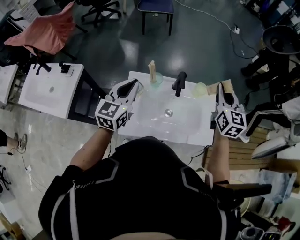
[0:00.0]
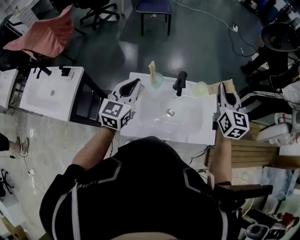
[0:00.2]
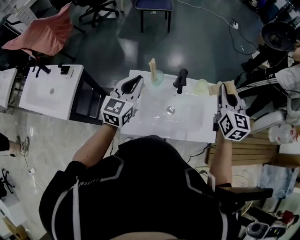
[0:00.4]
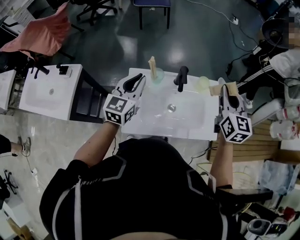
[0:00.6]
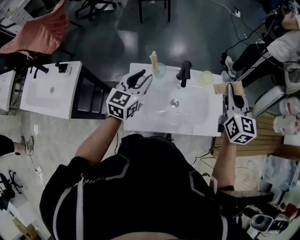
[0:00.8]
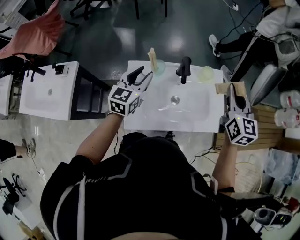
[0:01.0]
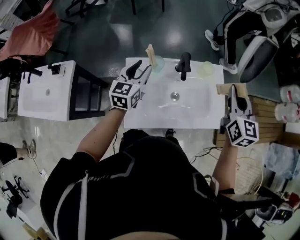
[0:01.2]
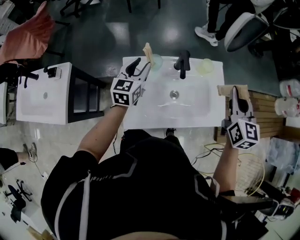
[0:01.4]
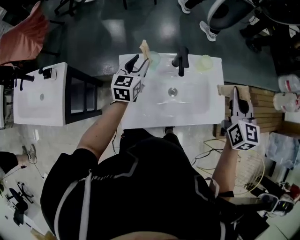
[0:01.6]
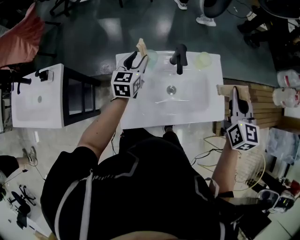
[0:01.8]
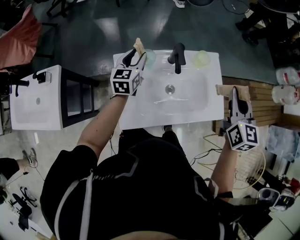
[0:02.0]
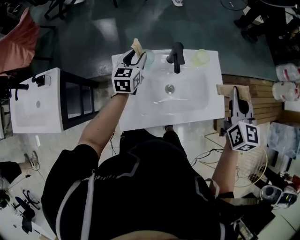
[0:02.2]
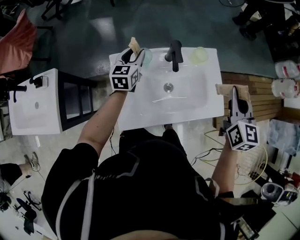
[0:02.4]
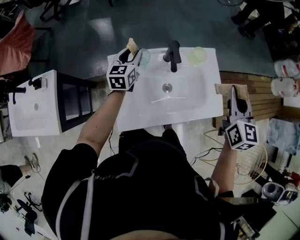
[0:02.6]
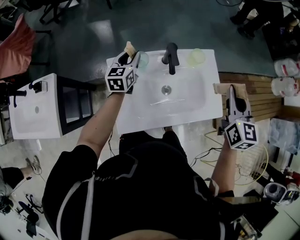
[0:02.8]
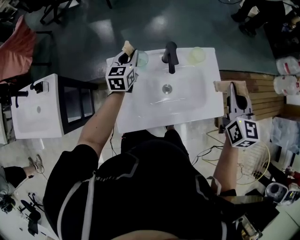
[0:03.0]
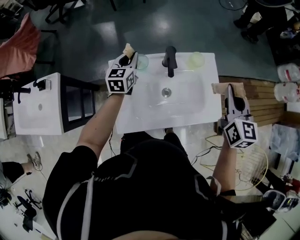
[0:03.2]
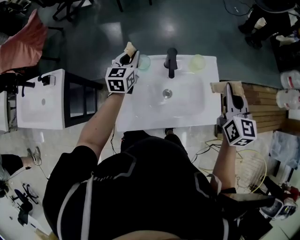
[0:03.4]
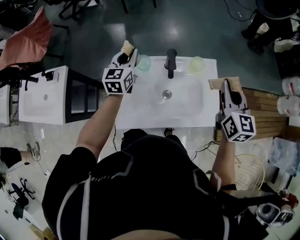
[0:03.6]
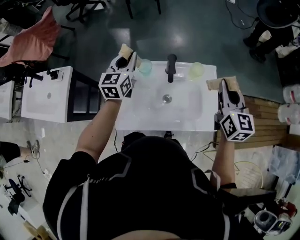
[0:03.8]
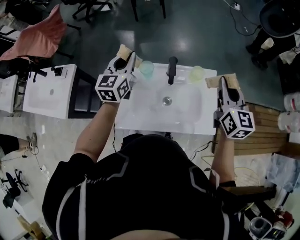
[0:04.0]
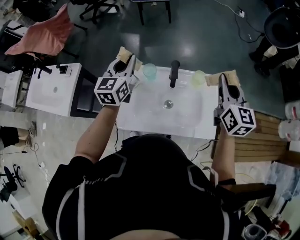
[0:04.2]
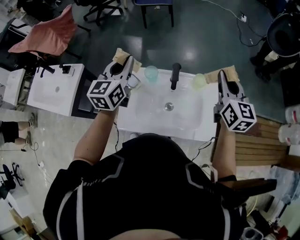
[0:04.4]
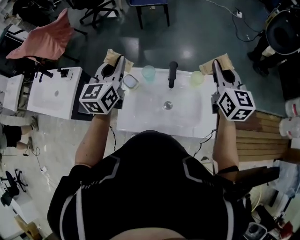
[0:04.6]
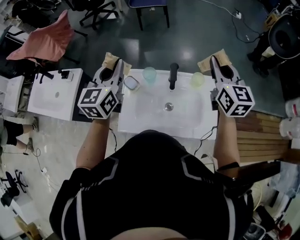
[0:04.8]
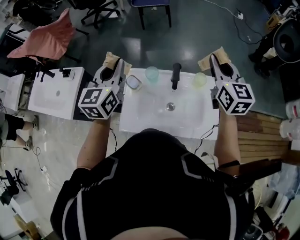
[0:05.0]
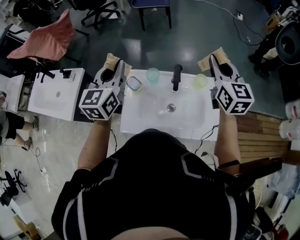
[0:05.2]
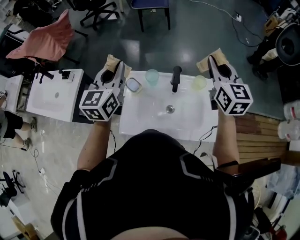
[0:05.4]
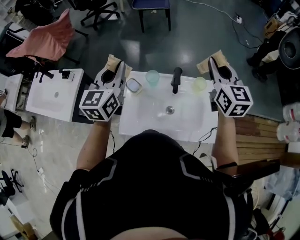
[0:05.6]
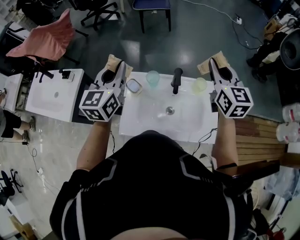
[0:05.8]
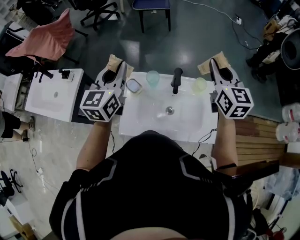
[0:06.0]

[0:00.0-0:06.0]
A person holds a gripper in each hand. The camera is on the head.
0:00.0 to 0:01.6: The right gripper is displaced backward by roughly 5 cm. The left gripper heads downward and forward, covering some 20 cm, and opens its fingers.
0:01.6 to 0:03.0: The left gripper moves forward, about 5 cm, and closes up.
0:03.0 to 0:04.4: The right gripper is displaced forward and upward by about 10 cm, and turns by some 20 degrees. Meanwhile the left gripper heads upward and backward, covering approximately 25 cm.
0:04.4 to 0:06.0: The left gripper ends up roughly 5 cm from where it was, while the right gripper is displaced to the left by approximately 5 cm.

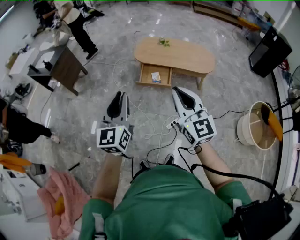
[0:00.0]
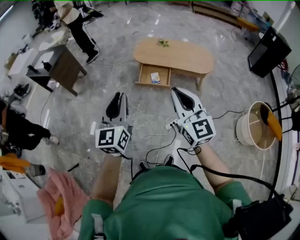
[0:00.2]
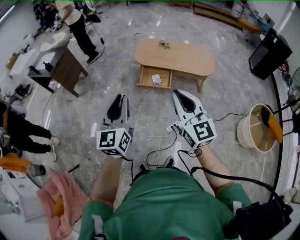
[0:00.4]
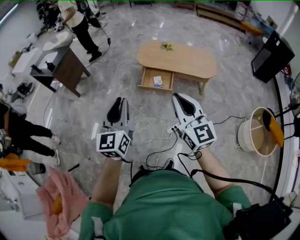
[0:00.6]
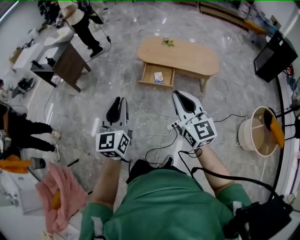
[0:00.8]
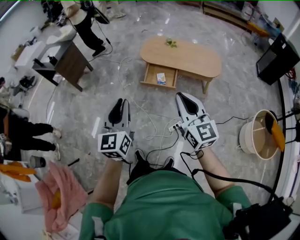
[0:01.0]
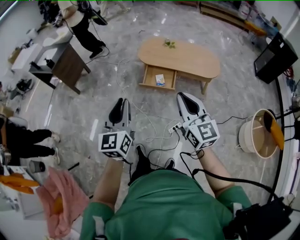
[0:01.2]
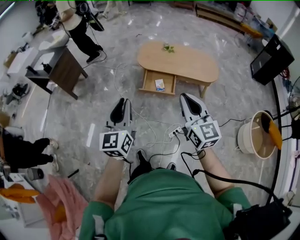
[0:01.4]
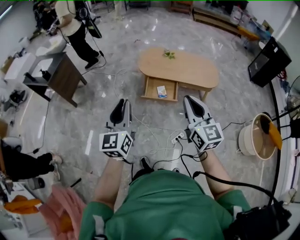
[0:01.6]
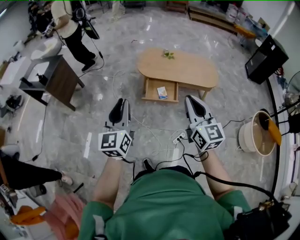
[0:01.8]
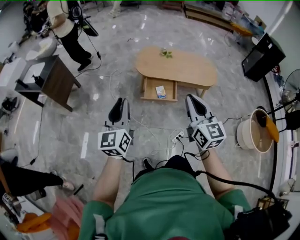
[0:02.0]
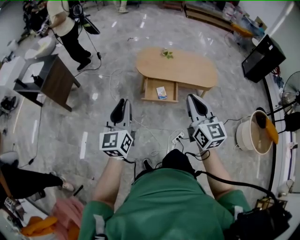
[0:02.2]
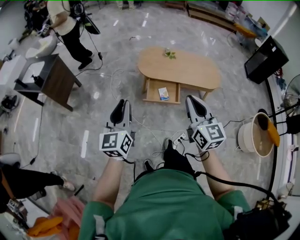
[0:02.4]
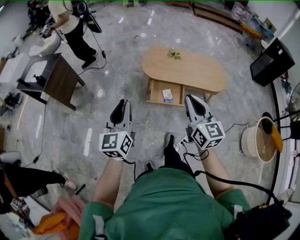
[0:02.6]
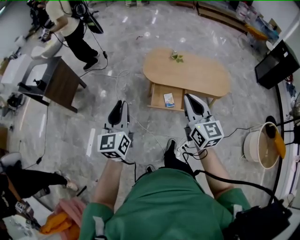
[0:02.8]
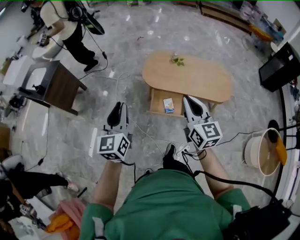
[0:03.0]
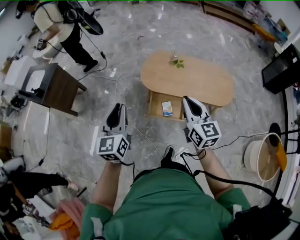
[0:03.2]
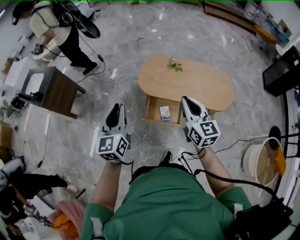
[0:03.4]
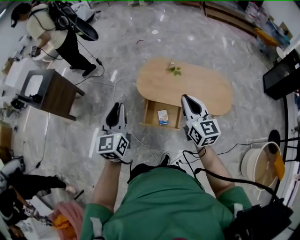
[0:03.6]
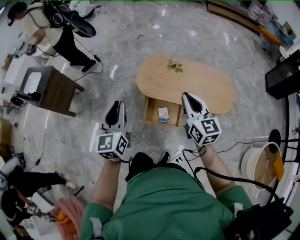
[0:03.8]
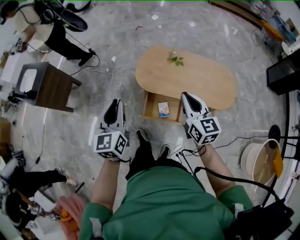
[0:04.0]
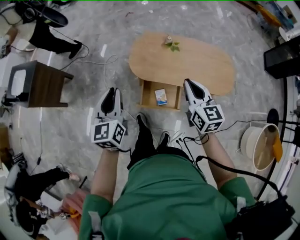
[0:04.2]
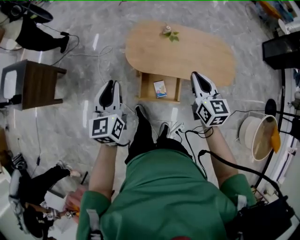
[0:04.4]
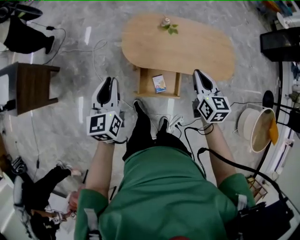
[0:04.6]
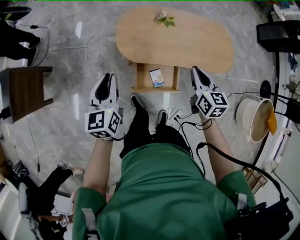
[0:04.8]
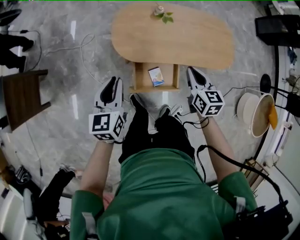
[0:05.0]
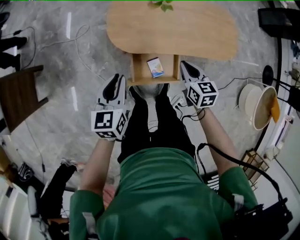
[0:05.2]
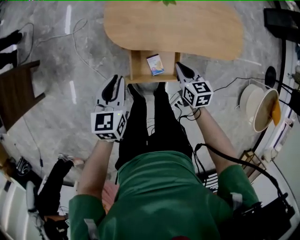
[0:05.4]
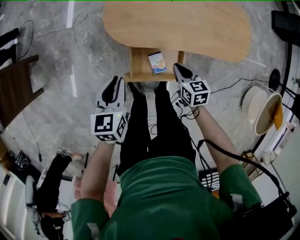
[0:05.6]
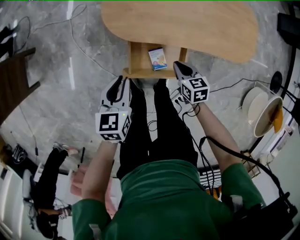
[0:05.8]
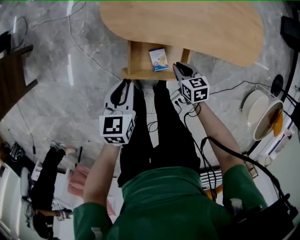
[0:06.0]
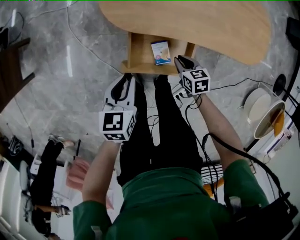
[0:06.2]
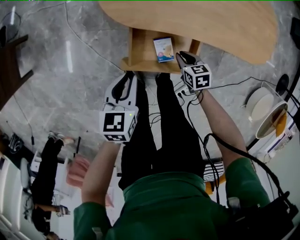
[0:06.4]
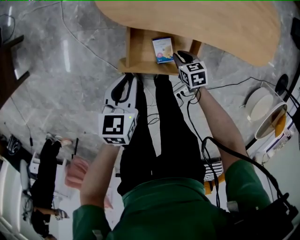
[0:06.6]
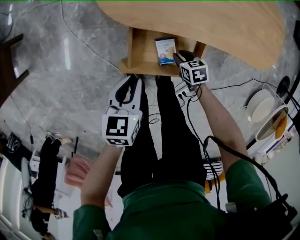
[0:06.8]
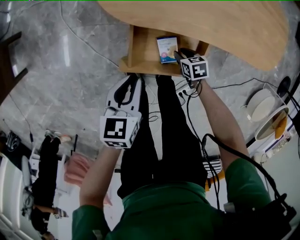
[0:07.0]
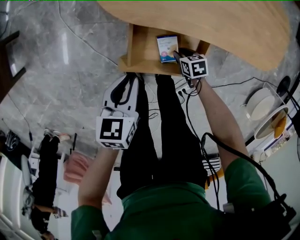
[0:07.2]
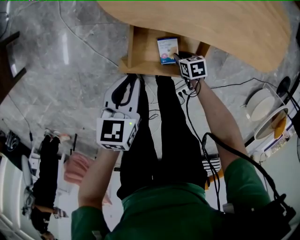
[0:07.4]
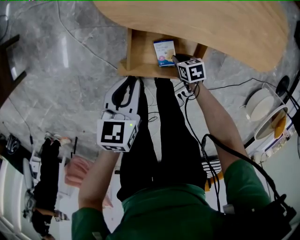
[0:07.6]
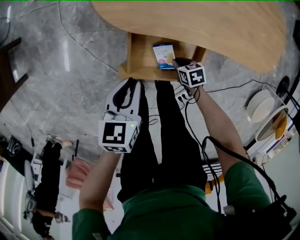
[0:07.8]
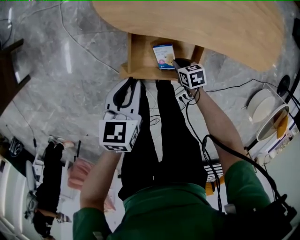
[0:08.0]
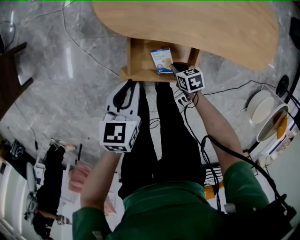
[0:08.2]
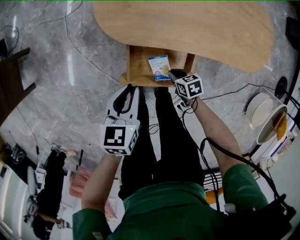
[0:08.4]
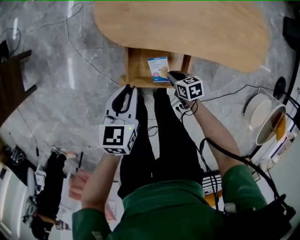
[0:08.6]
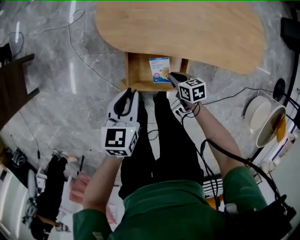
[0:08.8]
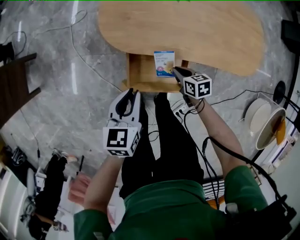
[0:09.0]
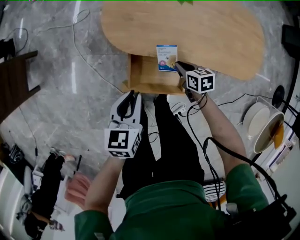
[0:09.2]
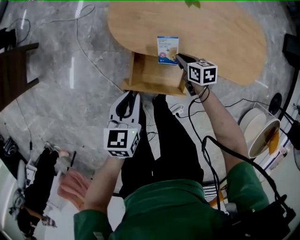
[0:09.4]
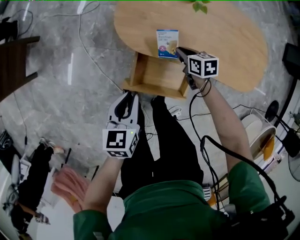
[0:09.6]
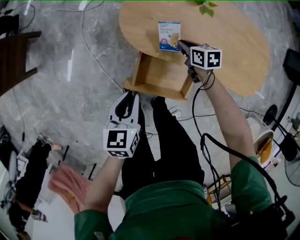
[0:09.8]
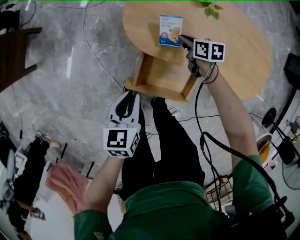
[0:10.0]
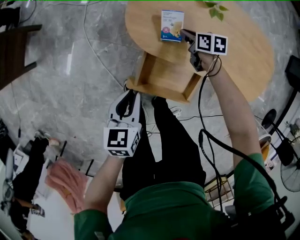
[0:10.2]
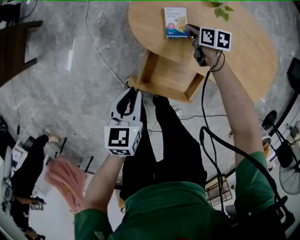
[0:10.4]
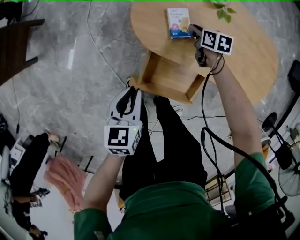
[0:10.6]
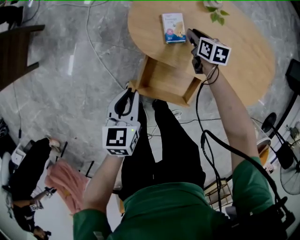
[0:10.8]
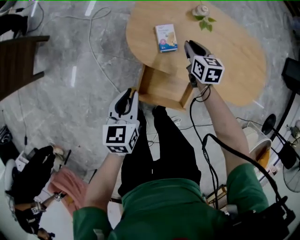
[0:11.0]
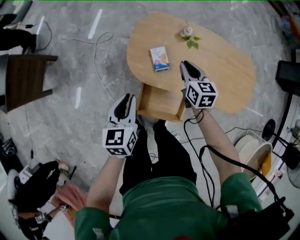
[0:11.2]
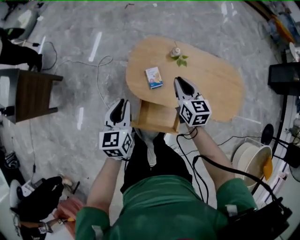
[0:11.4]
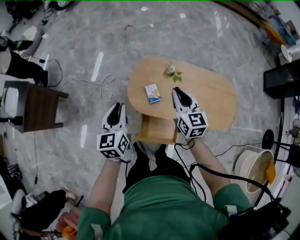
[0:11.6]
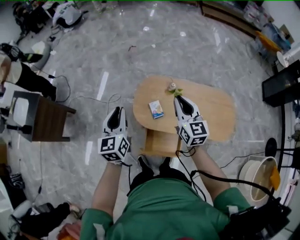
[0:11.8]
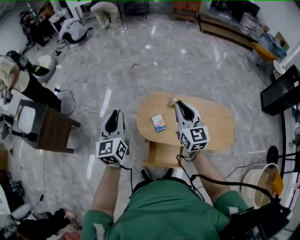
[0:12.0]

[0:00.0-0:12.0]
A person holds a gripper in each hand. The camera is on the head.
0:00.0 to 0:01.6: The two grippers go approximately 15 cm forward and to the left.
0:01.6 to 0:03.0: Both grippers move forward, about 30 cm.
0:03.0 to 0:04.4: The right gripper moves forward, to the right and downward, roughly 30 cm, while the left gripper is displaced forward and downward by approximately 30 cm.
0:04.4 to 0:06.0: The two grippers go some 40 cm downward. The left gripper rotates some 30 degrees. The right gripper angles its fingers downward, by about 30 degrees.
0:06.0 to 0:07.6: The right gripper shifts approximately 20 cm downward, and turns by approximately 20 degrees. The left gripper travels downward by roughly 10 cm.
0:07.6 to 0:09.0: The left gripper is displaced upward by approximately 10 cm, while the right gripper heads upward, covering approximately 15 cm.
0:09.0 to 0:10.4: The right gripper travels forward by roughly 25 cm, while the left gripper goes roughly 10 cm to the left.
0:10.4 to 0:12.0: The grippers both shift upward by roughly 60 cm. The left gripper tilts its fingers some 40 degrees upward; the right gripper tilts its fingers about 50 degrees upward.

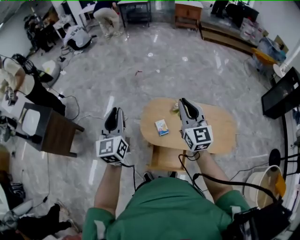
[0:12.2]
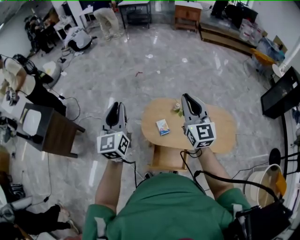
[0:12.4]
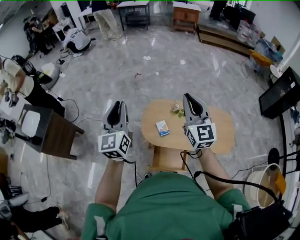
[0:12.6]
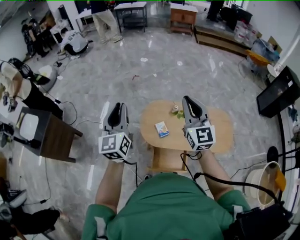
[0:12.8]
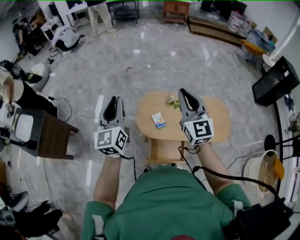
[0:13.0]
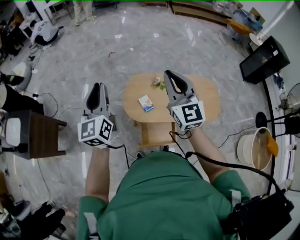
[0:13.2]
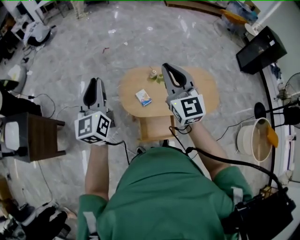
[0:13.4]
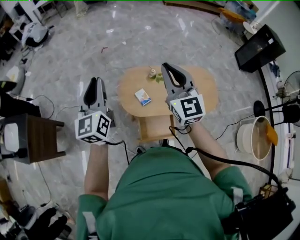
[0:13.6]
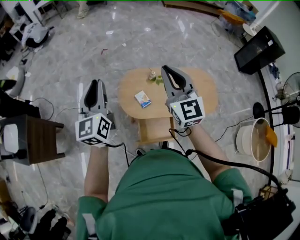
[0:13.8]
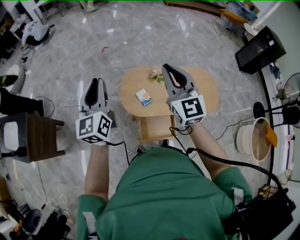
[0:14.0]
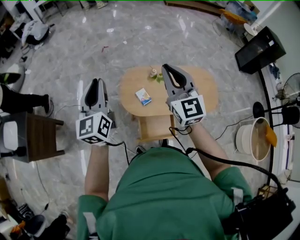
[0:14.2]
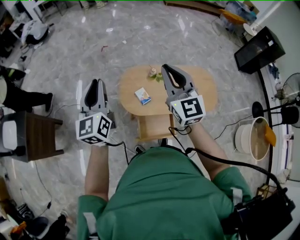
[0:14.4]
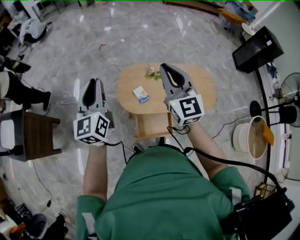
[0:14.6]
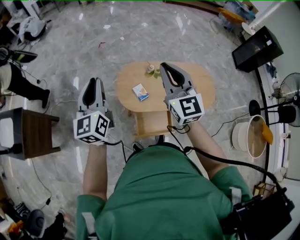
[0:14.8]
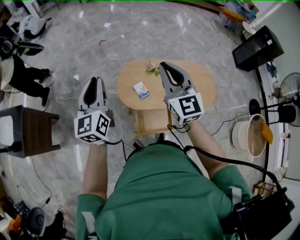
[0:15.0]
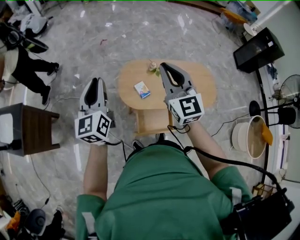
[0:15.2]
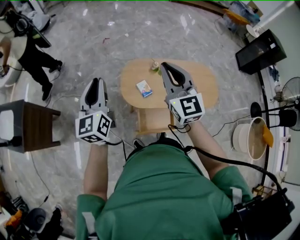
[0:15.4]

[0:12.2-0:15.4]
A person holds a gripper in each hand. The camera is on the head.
0:12.2 to 0:13.8: The right gripper shifts by about 5 cm.
0:13.8 to 0:15.4: The grippers stay close to where they were, moving slightly.

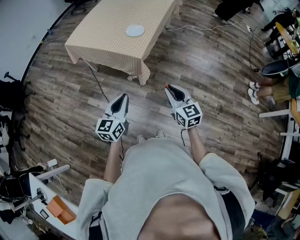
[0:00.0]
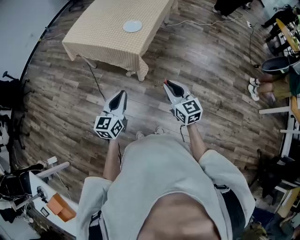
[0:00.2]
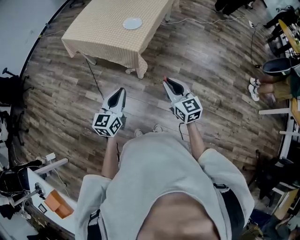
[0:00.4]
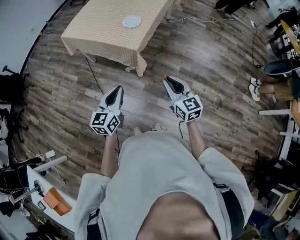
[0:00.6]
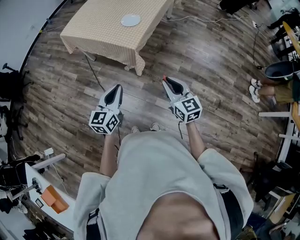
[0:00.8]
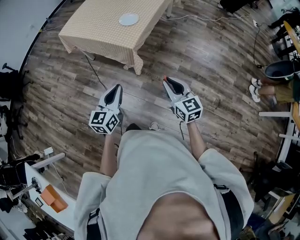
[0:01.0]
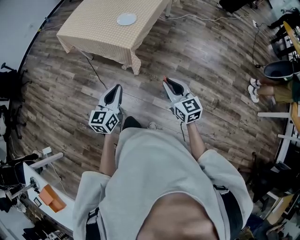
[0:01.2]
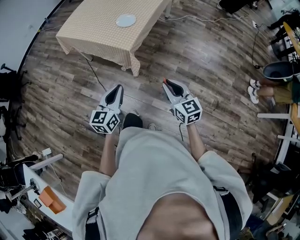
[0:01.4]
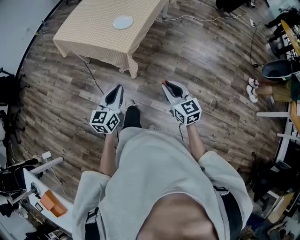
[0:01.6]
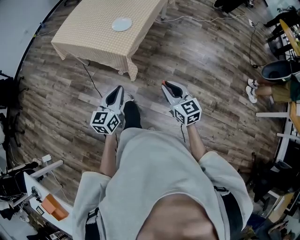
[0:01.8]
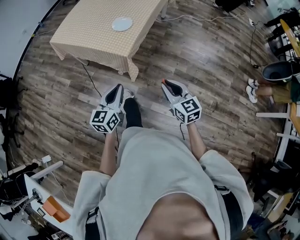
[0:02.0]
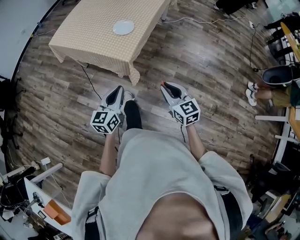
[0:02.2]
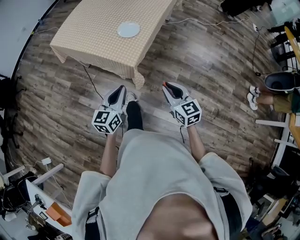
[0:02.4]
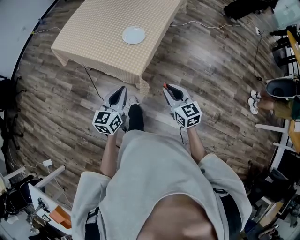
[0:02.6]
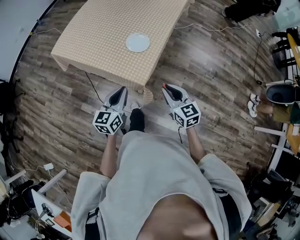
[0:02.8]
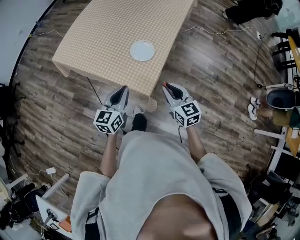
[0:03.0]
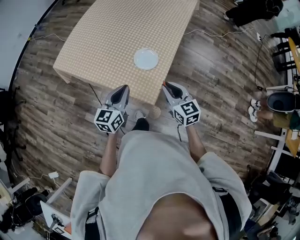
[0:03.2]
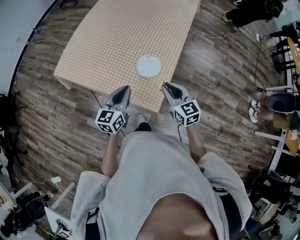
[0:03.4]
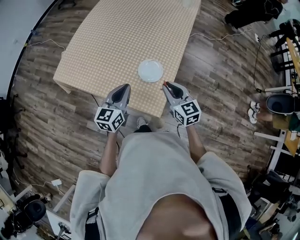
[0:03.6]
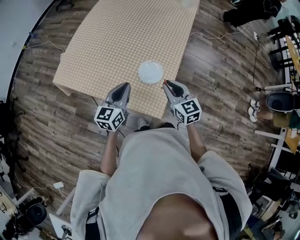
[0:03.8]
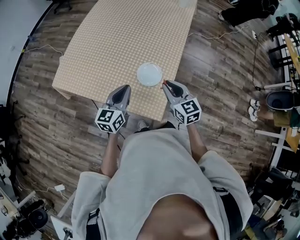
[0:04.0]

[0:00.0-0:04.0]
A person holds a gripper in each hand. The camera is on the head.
0:00.0 to 0:01.4: The grippers both shift to the right by some 10 cm.
0:01.4 to 0:02.6: Both grippers move forward, about 20 cm.
0:02.6 to 0:04.0: The two grippers go approximately 30 cm forward.
